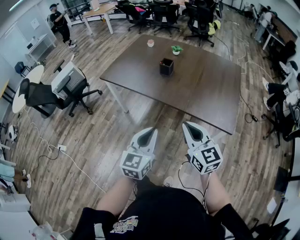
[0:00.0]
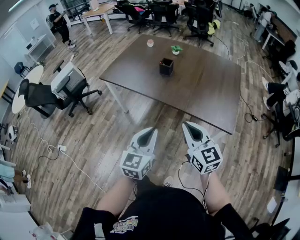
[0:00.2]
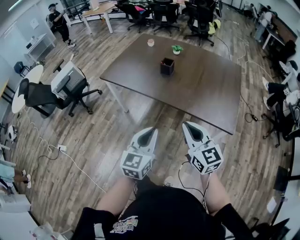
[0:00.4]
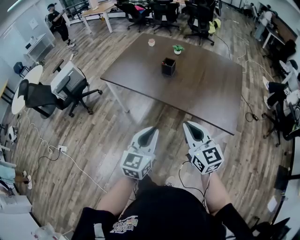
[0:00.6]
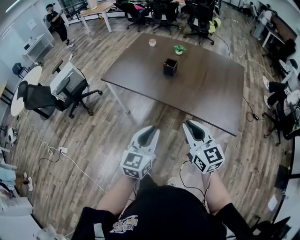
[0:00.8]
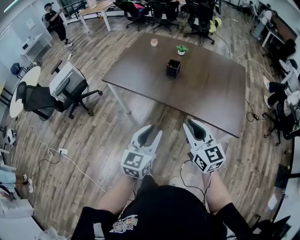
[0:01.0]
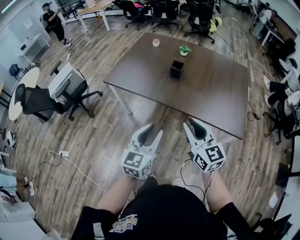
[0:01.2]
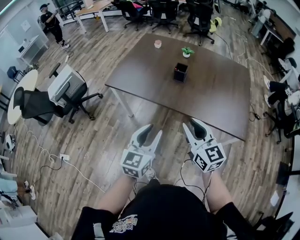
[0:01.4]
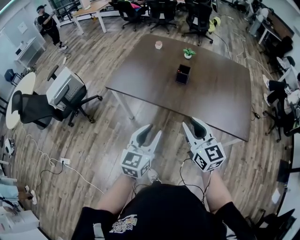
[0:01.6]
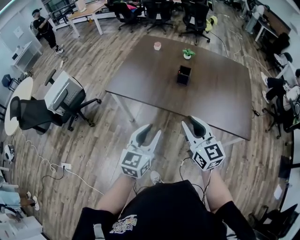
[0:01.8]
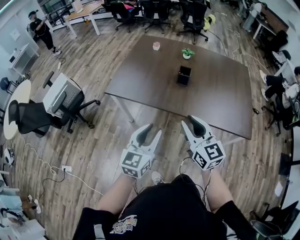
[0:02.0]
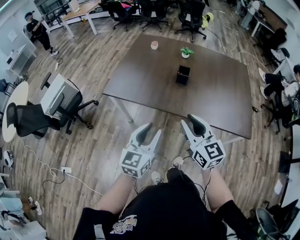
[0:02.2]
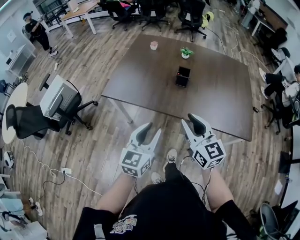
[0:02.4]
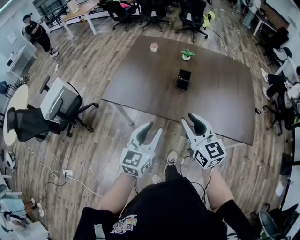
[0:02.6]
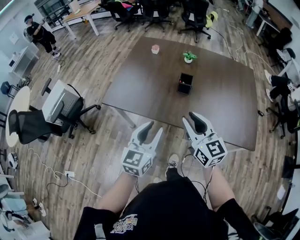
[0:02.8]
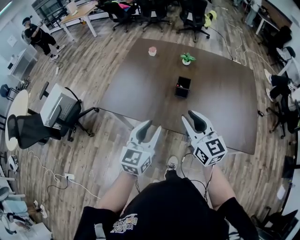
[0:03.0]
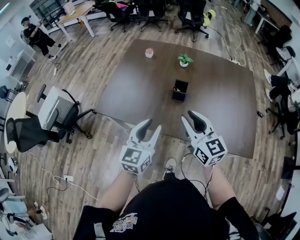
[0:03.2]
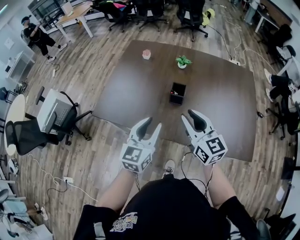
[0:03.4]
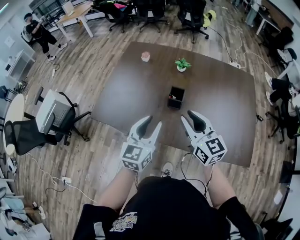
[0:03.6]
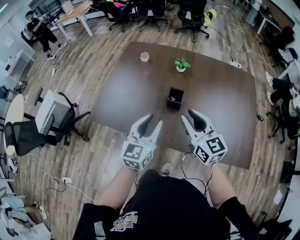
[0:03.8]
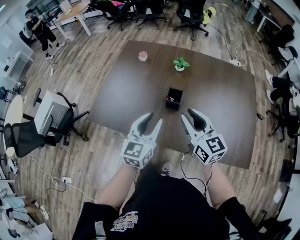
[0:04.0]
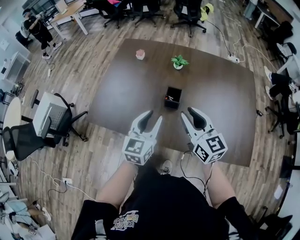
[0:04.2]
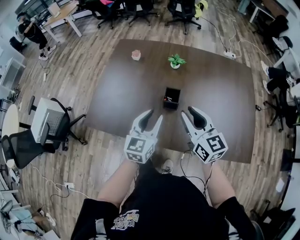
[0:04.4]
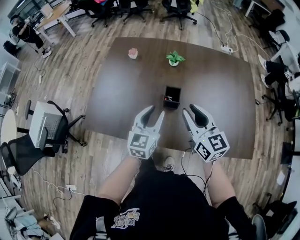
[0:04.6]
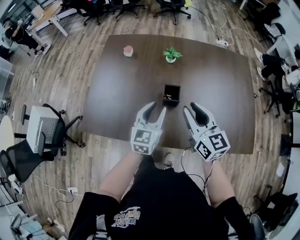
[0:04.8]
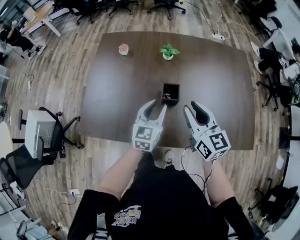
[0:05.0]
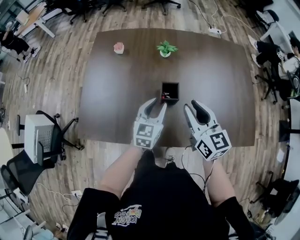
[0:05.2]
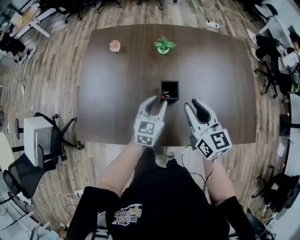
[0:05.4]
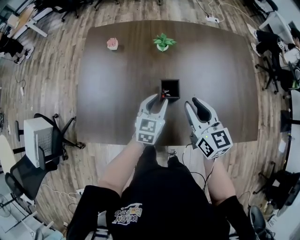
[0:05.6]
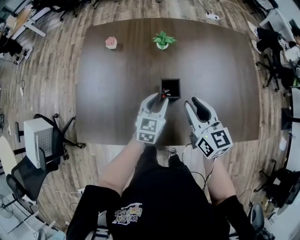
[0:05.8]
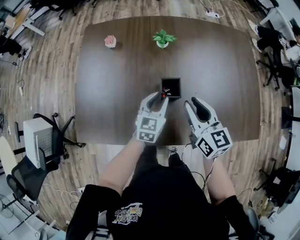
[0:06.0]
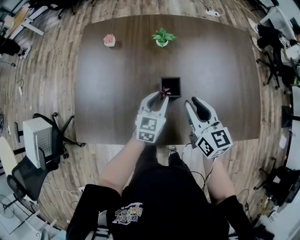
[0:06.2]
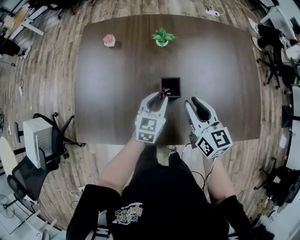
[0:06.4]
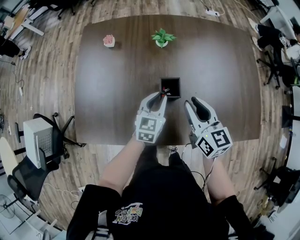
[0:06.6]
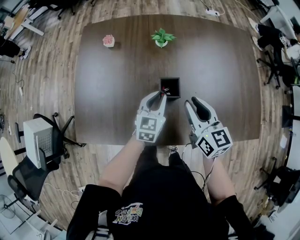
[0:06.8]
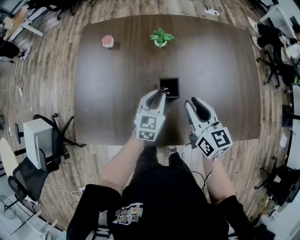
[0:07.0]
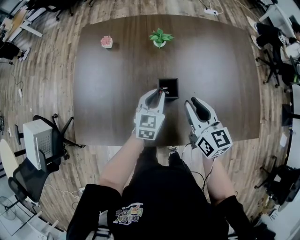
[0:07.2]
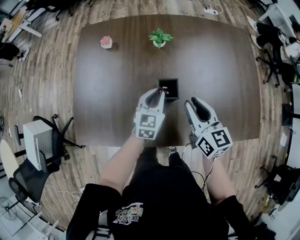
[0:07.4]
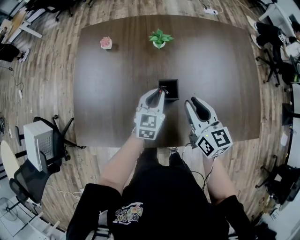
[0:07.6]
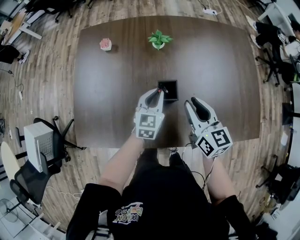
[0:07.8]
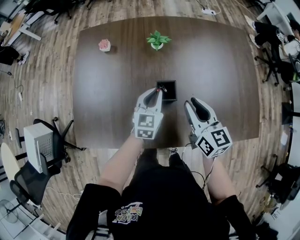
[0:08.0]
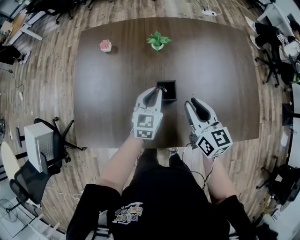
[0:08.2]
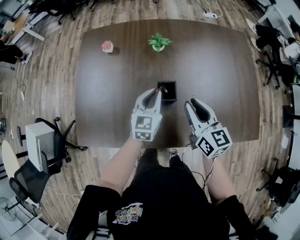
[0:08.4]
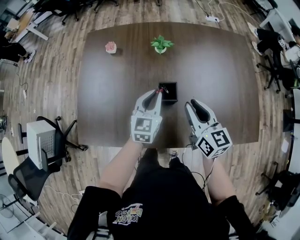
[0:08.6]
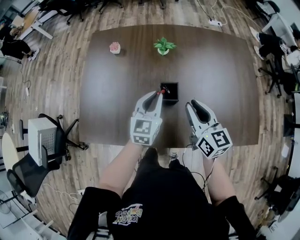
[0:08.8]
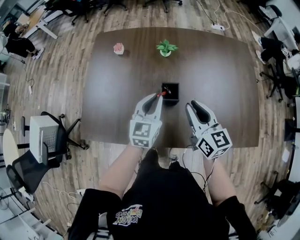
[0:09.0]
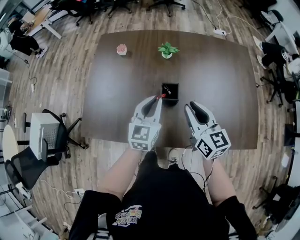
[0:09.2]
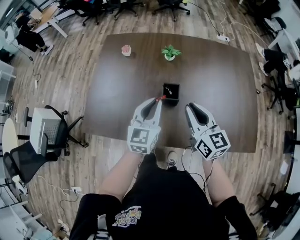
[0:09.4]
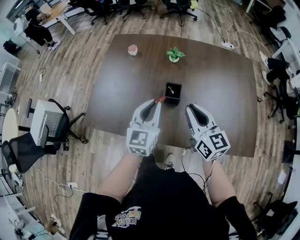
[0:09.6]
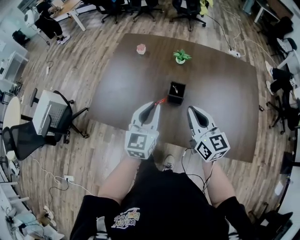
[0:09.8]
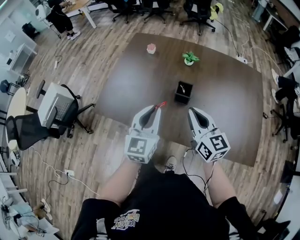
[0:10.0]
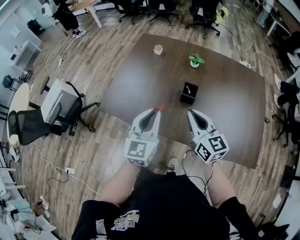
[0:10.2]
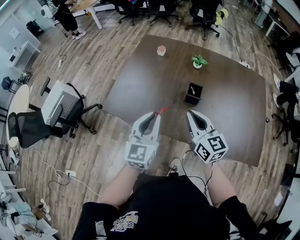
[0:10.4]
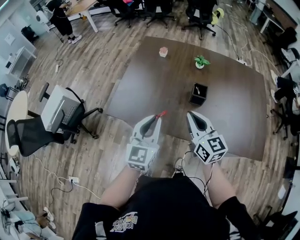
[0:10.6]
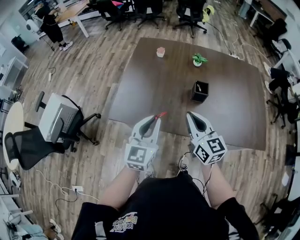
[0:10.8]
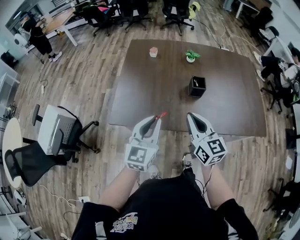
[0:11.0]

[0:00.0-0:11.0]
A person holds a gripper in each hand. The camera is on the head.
0:00.0 to 0:01.6: Both grippers move to the left and forward, approximately 20 cm. The left gripper opens up. The right gripper opens its fingers.
0:01.6 to 0:03.2: Both grippers travel together forward, about 25 cm.
0:03.2 to 0:04.8: The right gripper shifts roughly 15 cm forward. Meanwhile the left gripper moves forward and downward, about 20 cm.
0:04.8 to 0:06.2: The grippers both shift downward and forward by some 10 cm.
0:06.2 to 0:07.8: The grippers move only a little.
0:07.8 to 0:09.4: The left gripper shifts roughly 15 cm upward and backward. The right gripper goes roughly 10 cm upward and backward.
0:09.4 to 0:11.0: The two grippers go roughly 30 cm to the left and backward.

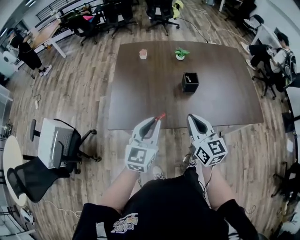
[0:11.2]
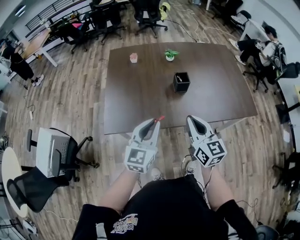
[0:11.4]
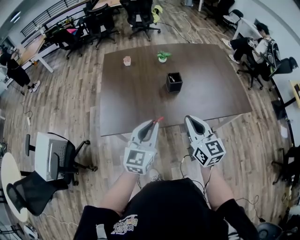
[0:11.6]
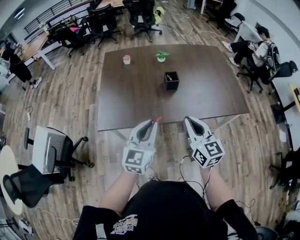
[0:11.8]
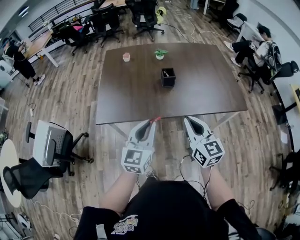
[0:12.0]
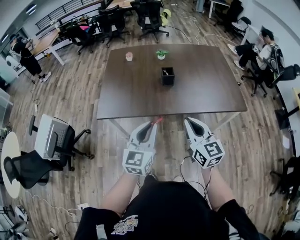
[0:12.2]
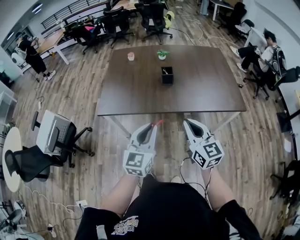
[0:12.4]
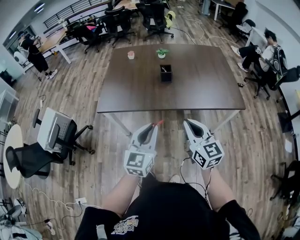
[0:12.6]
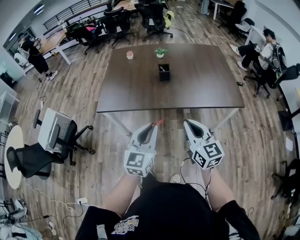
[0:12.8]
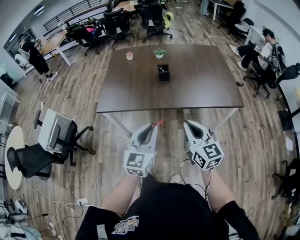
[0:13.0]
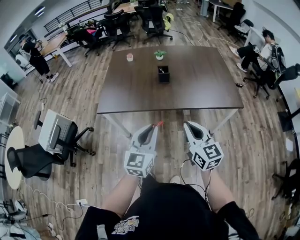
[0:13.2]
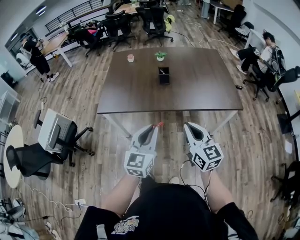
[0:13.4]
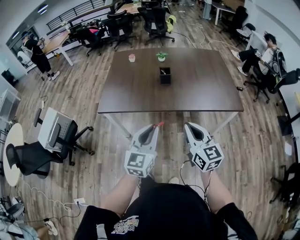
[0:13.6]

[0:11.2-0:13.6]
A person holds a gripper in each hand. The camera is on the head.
0:11.2 to 0:12.4: Both grippers move backward and to the right, approximately 25 cm.
0:12.4 to 0:13.6: The right gripper changes place by some 5 cm. The left gripper moves approximately 5 cm.

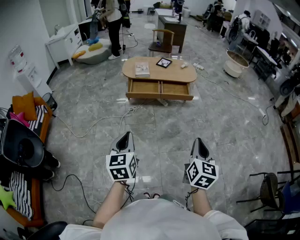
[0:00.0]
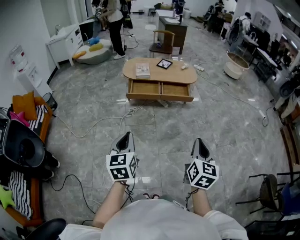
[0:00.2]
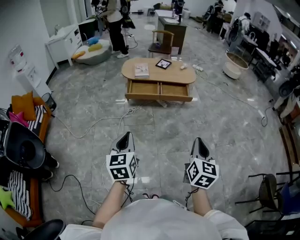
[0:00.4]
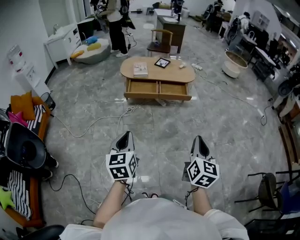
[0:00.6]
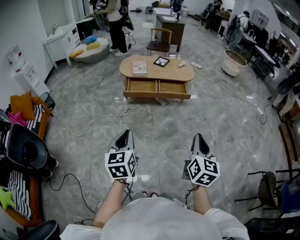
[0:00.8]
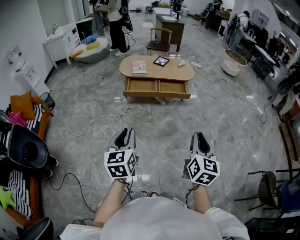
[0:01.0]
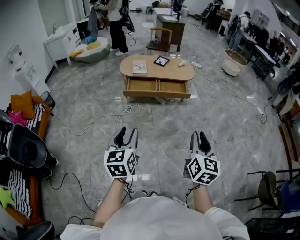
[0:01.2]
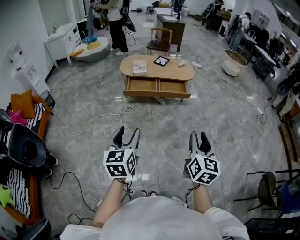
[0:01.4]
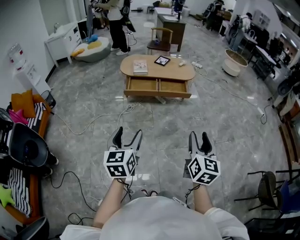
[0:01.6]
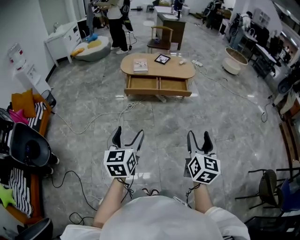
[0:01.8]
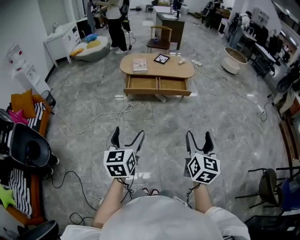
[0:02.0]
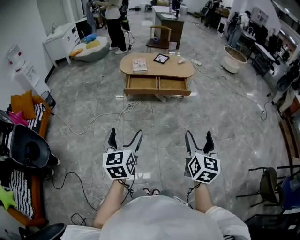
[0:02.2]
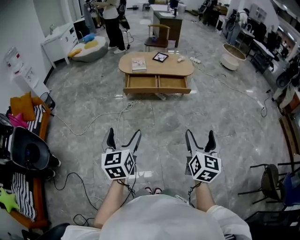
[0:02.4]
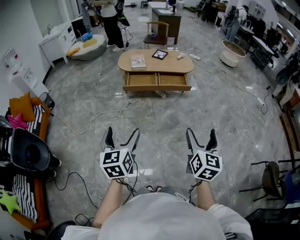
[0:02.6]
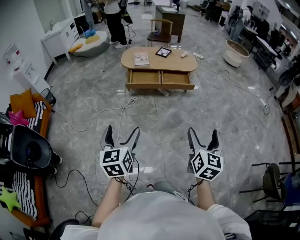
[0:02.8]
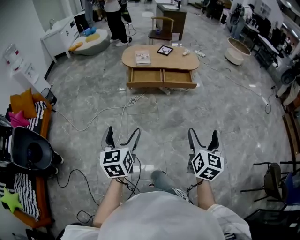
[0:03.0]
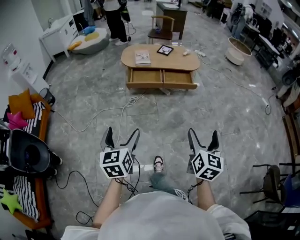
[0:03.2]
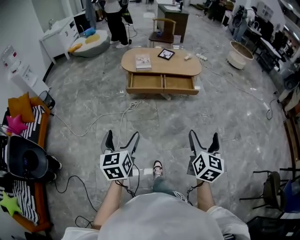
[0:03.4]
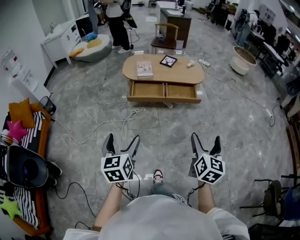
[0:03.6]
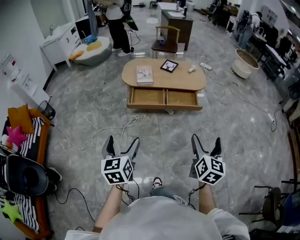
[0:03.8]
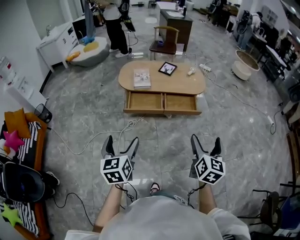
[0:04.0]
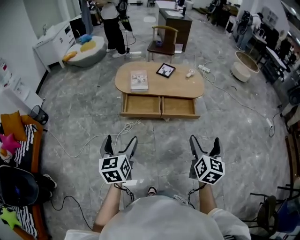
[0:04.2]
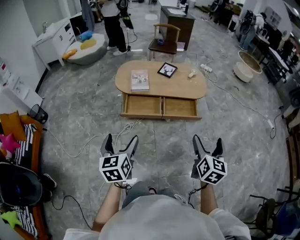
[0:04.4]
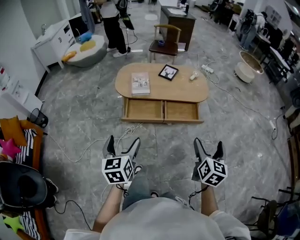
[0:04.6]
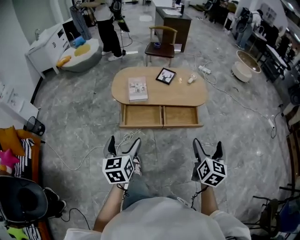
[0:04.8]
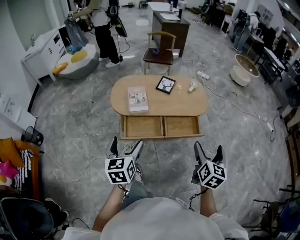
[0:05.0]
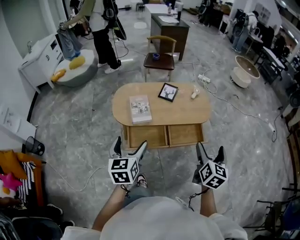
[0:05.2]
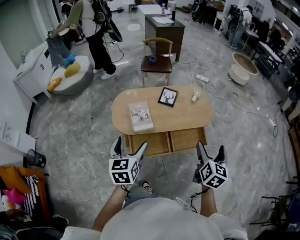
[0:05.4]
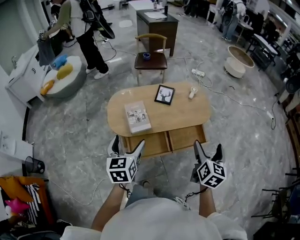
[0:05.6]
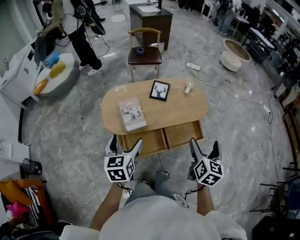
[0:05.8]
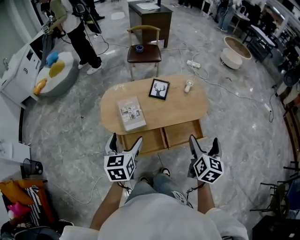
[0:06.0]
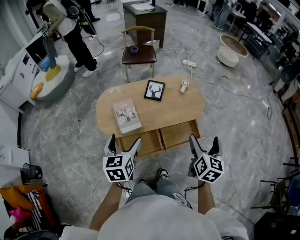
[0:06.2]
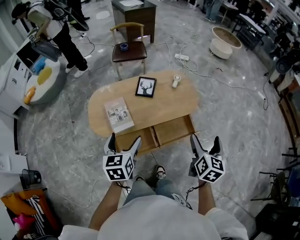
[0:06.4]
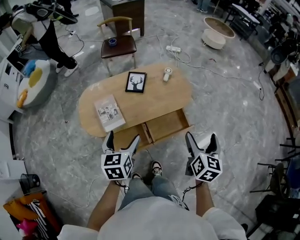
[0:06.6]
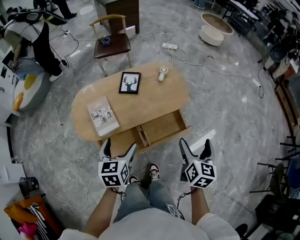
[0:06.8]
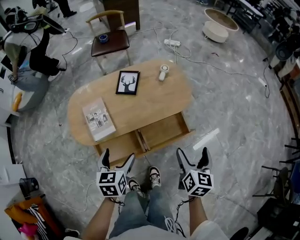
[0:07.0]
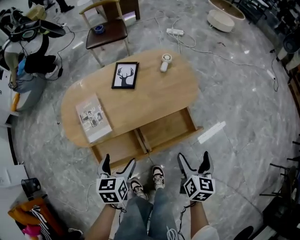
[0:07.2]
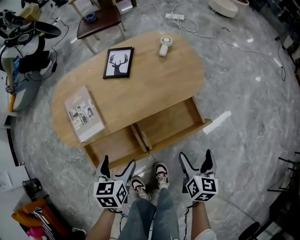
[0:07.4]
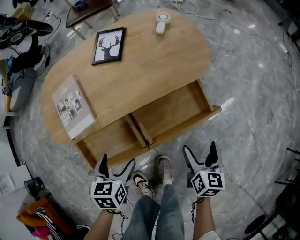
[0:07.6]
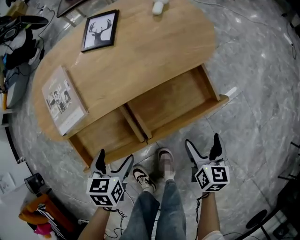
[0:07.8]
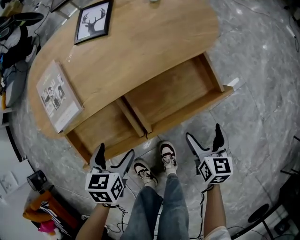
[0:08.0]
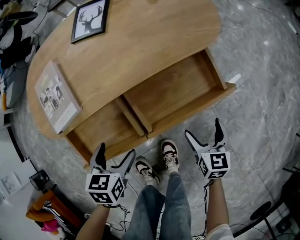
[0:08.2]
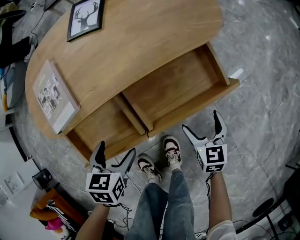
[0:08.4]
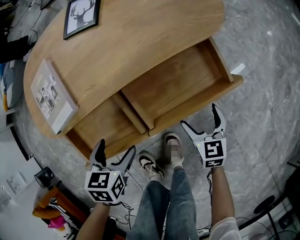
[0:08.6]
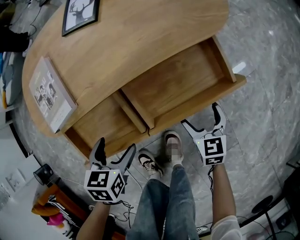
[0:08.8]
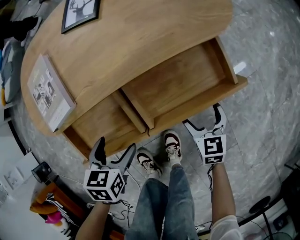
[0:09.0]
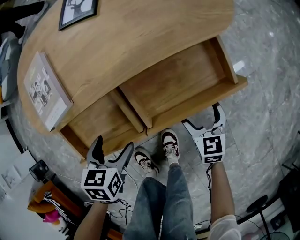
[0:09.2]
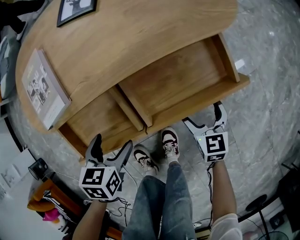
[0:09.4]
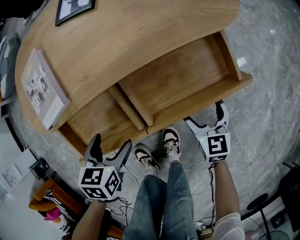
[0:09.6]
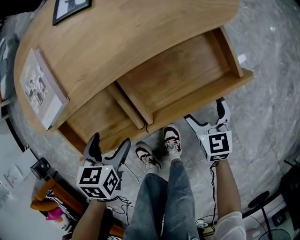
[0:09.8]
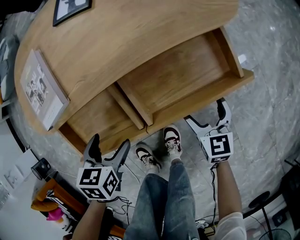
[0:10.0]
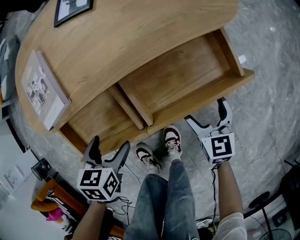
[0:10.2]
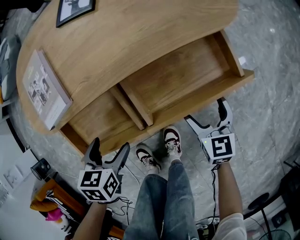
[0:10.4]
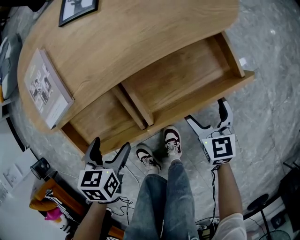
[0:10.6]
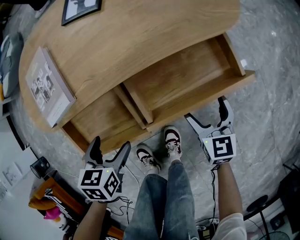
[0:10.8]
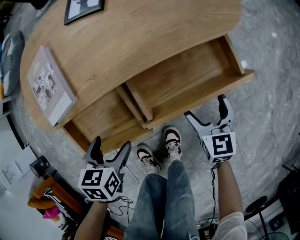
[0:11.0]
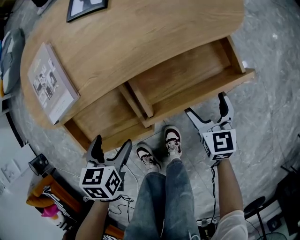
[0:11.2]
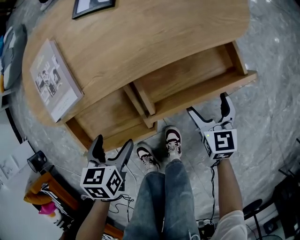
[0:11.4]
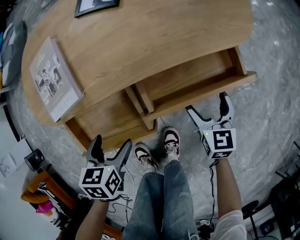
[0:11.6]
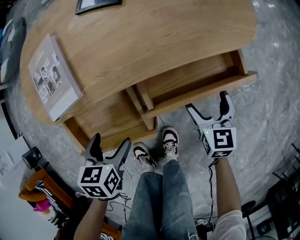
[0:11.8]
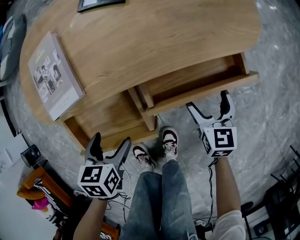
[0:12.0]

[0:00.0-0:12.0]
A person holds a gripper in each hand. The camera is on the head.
0:00.0 to 0:01.6: The right gripper opens; the left gripper opens.
0:01.6 to 0:03.0: The left gripper shifts roughly 5 cm to the left. Meanwhile the right gripper opens.
0:03.0 to 0:04.4: The grippers both shift forward by approximately 40 cm.
0:04.4 to 0:06.0: The left gripper goes approximately 40 cm forward, and swivels roughly 20 degrees. Meanwhile the right gripper travels forward and to the left by about 35 cm.
0:06.0 to 0:07.6: The two grippers go roughly 40 cm downward. The left gripper turns by roughly 30 degrees.
0:07.6 to 0:09.0: The right gripper shifts approximately 15 cm downward, and changes its angle by roughly 30 degrees. Meanwhile the left gripper heads downward, covering approximately 10 cm.
0:09.0 to 0:10.4: The grippers move only a little.
0:10.4 to 0:12.0: The right gripper heads forward, covering some 5 cm.
